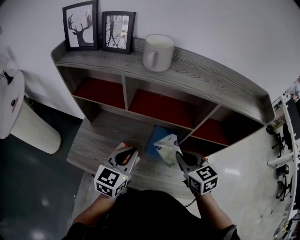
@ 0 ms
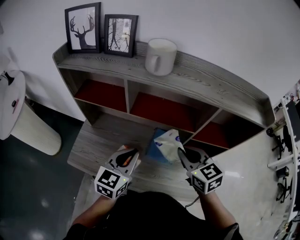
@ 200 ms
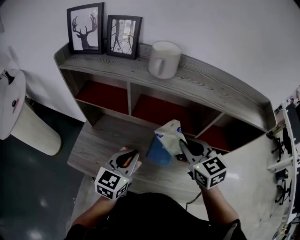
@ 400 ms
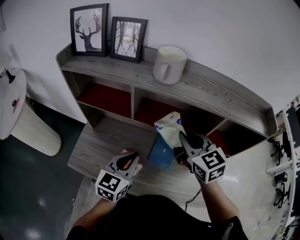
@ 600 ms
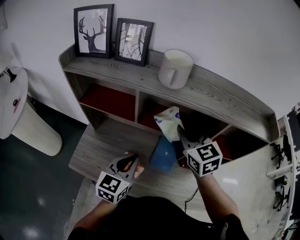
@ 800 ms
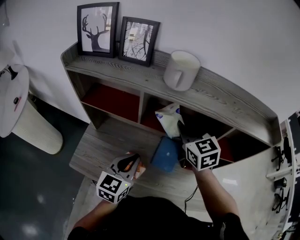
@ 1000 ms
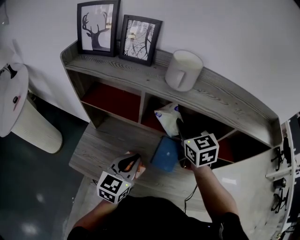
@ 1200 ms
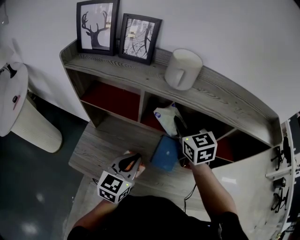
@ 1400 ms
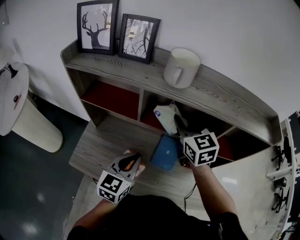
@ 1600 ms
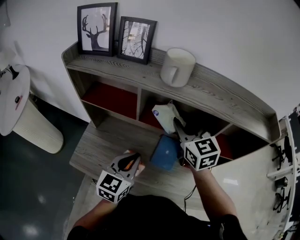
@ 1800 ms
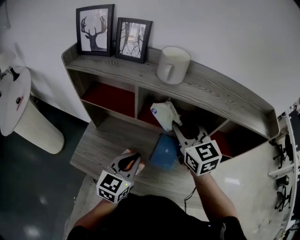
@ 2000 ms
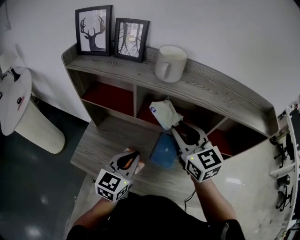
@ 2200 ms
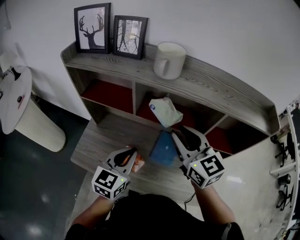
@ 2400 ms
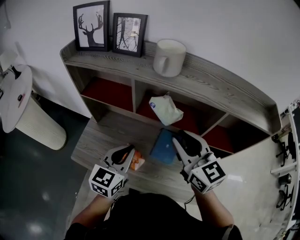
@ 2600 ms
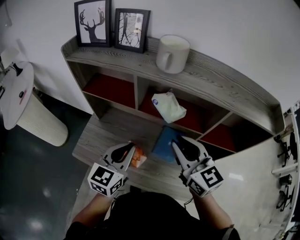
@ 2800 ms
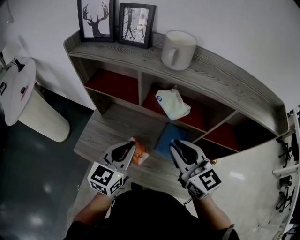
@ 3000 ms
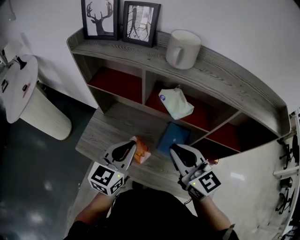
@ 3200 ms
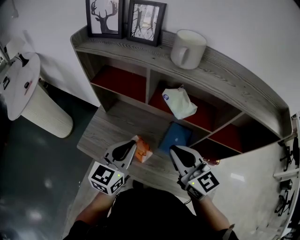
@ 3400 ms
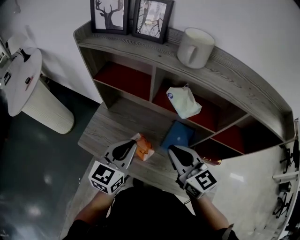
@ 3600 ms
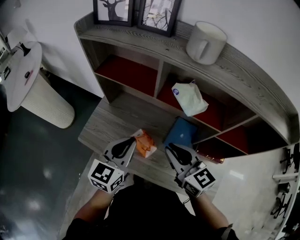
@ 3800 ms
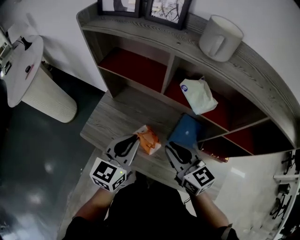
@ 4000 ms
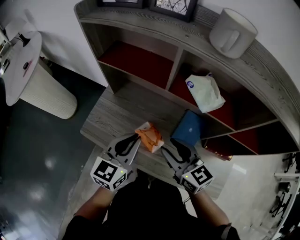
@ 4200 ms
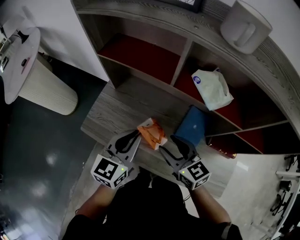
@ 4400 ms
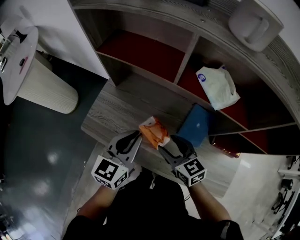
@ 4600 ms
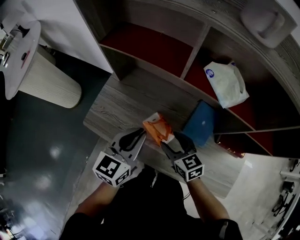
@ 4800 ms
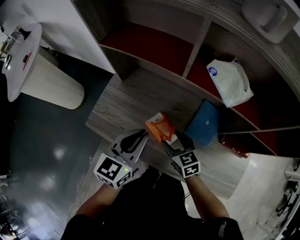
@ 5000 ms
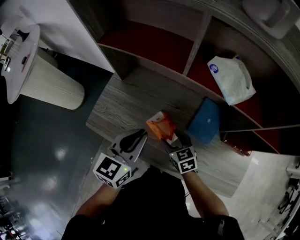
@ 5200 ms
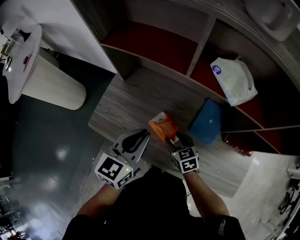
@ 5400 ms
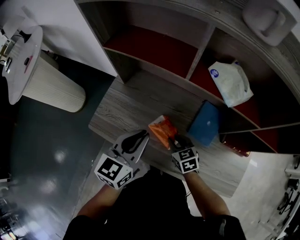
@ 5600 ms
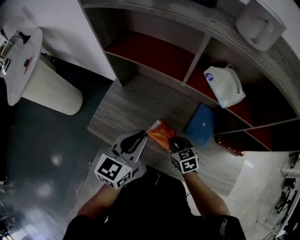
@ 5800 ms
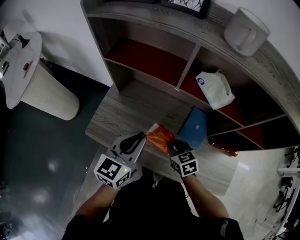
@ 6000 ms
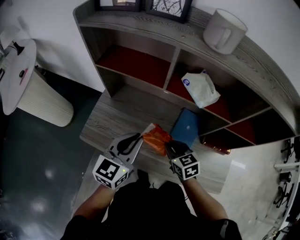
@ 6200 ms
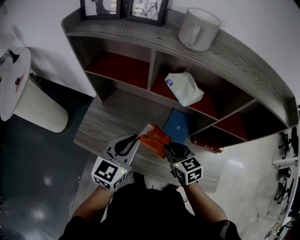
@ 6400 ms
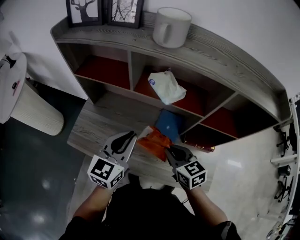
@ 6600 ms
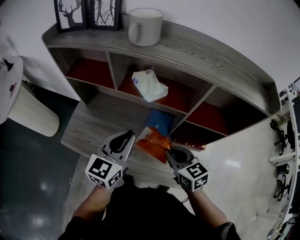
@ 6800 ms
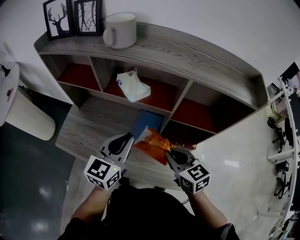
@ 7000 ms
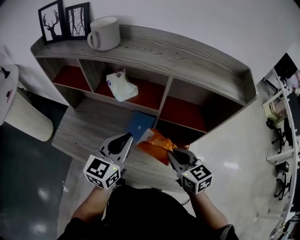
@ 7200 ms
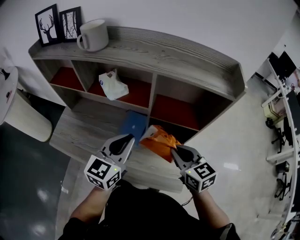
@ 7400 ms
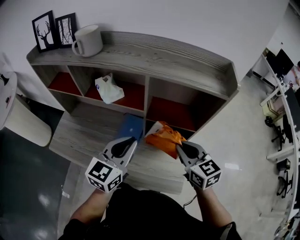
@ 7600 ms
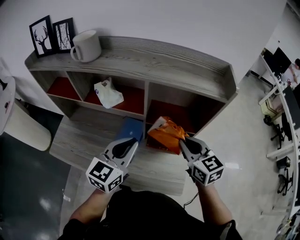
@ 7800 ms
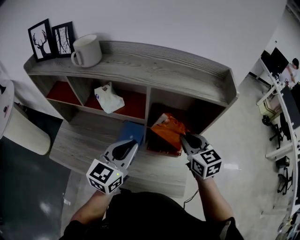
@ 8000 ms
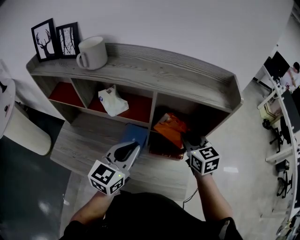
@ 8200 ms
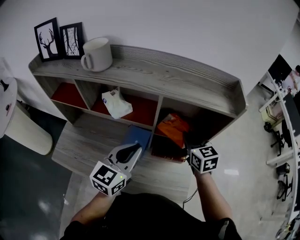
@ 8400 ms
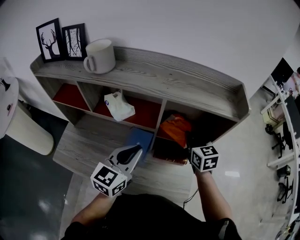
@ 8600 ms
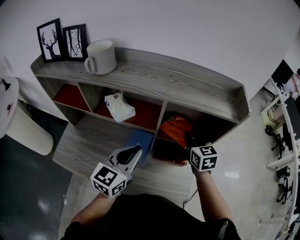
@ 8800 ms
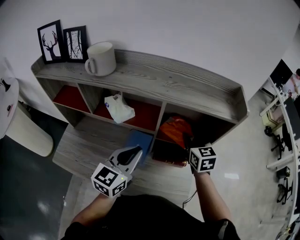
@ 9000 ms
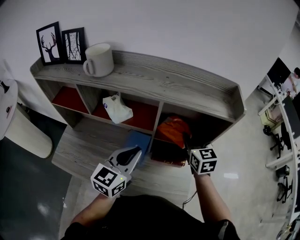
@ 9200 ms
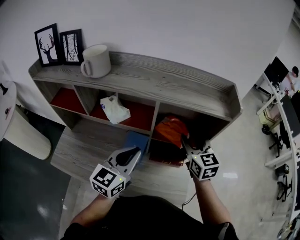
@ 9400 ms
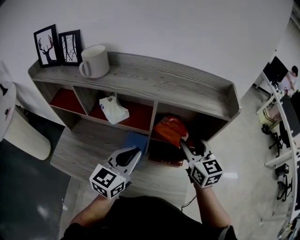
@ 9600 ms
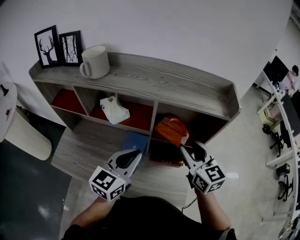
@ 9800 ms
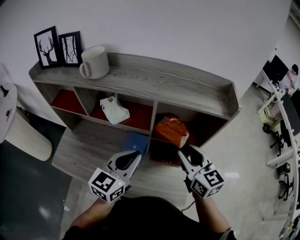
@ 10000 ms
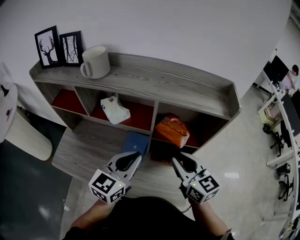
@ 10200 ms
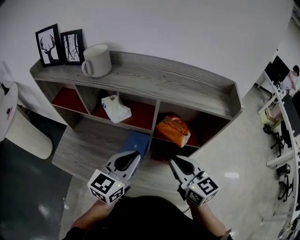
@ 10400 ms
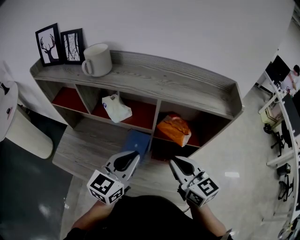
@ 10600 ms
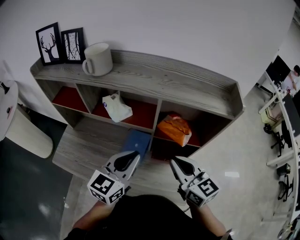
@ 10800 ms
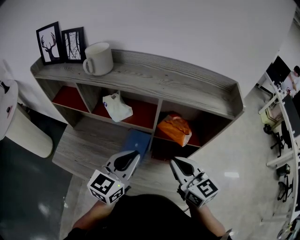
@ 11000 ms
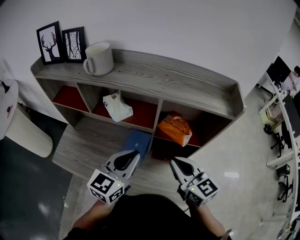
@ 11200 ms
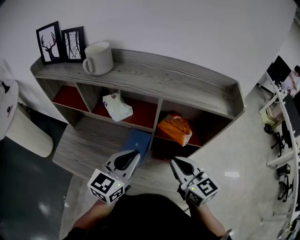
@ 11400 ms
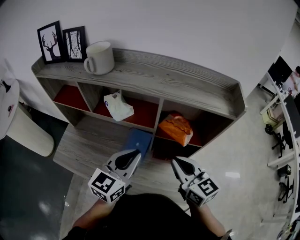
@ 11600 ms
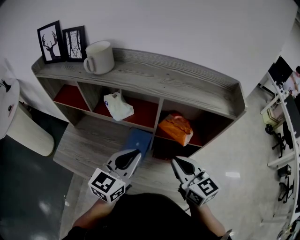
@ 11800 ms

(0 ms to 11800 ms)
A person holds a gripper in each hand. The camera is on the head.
0 ms - 1400 ms: The right gripper travels forward, upward and to the left by some 20 cm.
1400 ms - 3000 ms: The right gripper moves backward, some 15 cm, and rotates roughly 30 degrees.
3000 ms - 4400 ms: The right gripper heads downward and to the left, covering roughly 20 cm, swivels some 20 degrees, and opens. Meanwhile the left gripper shifts approximately 10 cm downward and to the left.
4400 ms - 6000 ms: The right gripper travels downward by about 10 cm, changes its angle by approximately 20 degrees, and closes its fingers.
6000 ms - 7400 ms: The right gripper shifts roughly 40 cm to the right and upward, and turns by about 20 degrees. The left gripper heads to the right, covering some 30 cm.
7400 ms - 8800 ms: The right gripper shifts some 15 cm forward, and changes its angle by about 20 degrees.
8800 ms - 10400 ms: The right gripper travels backward by some 15 cm, changes its angle by some 20 degrees, and opens and closes again.
10400 ms - 11800 ms: The two grippers keep their place.

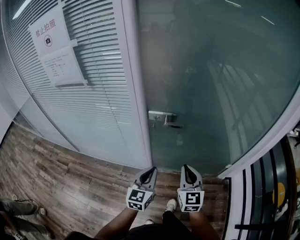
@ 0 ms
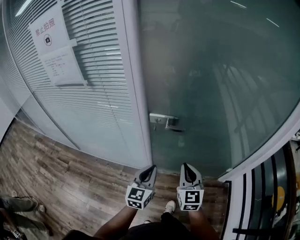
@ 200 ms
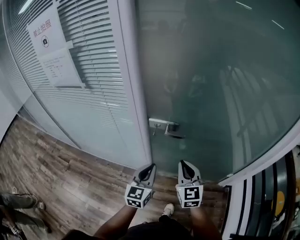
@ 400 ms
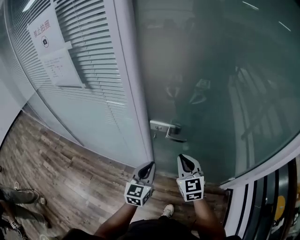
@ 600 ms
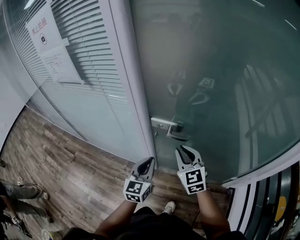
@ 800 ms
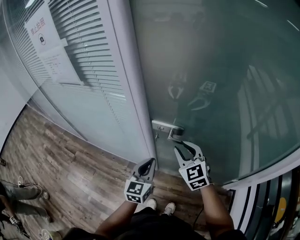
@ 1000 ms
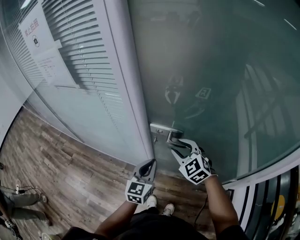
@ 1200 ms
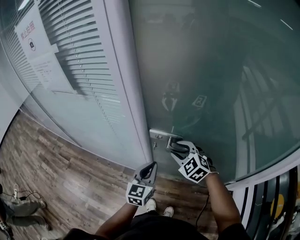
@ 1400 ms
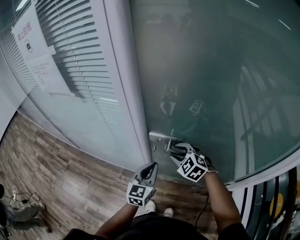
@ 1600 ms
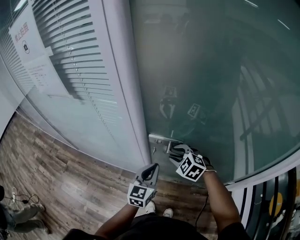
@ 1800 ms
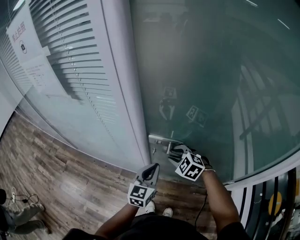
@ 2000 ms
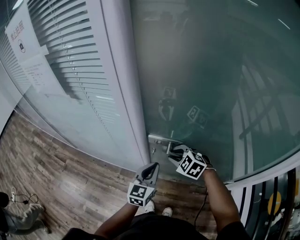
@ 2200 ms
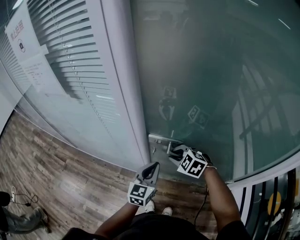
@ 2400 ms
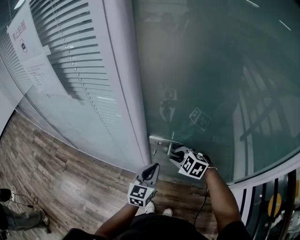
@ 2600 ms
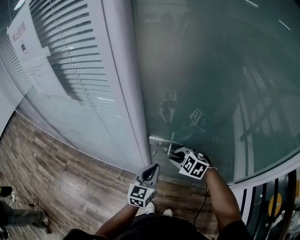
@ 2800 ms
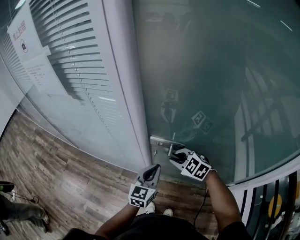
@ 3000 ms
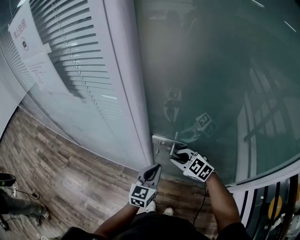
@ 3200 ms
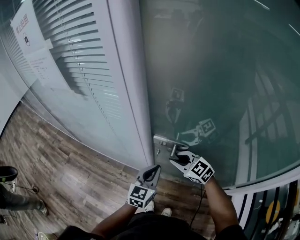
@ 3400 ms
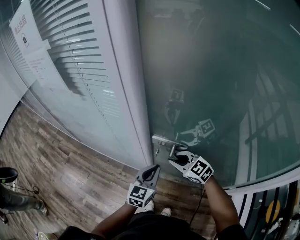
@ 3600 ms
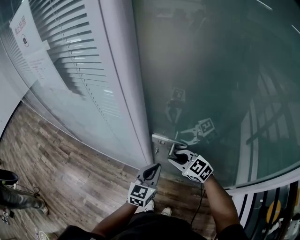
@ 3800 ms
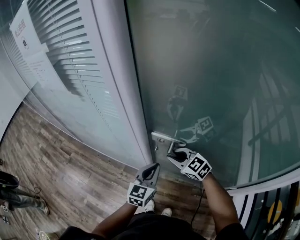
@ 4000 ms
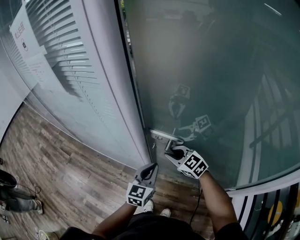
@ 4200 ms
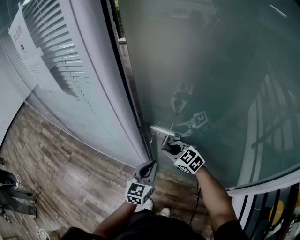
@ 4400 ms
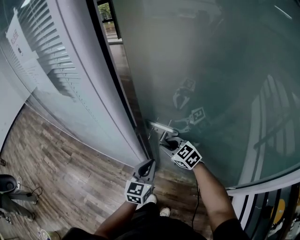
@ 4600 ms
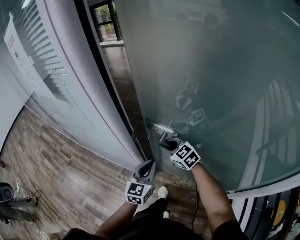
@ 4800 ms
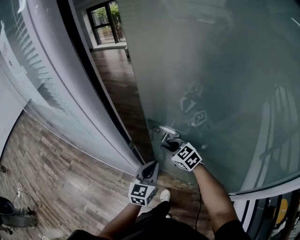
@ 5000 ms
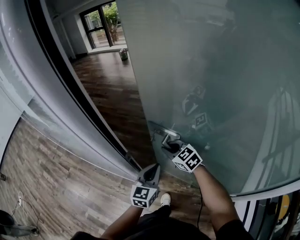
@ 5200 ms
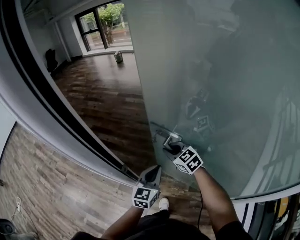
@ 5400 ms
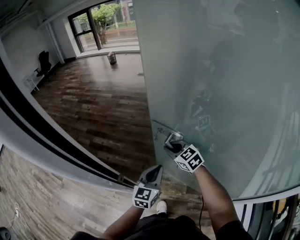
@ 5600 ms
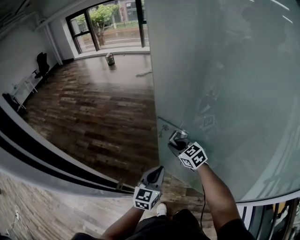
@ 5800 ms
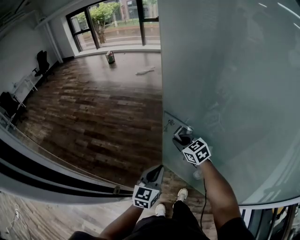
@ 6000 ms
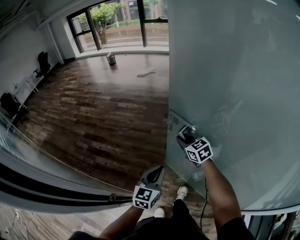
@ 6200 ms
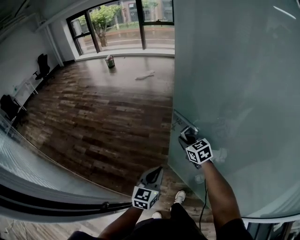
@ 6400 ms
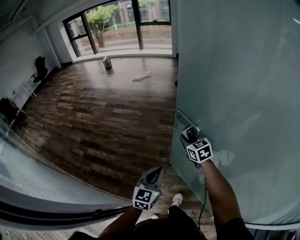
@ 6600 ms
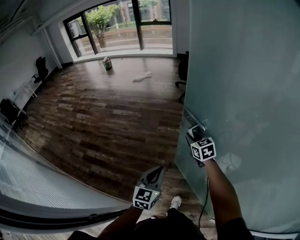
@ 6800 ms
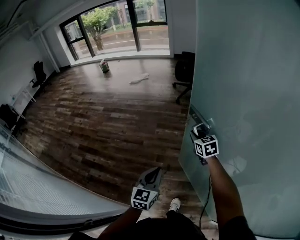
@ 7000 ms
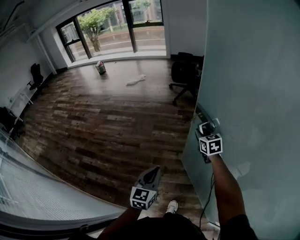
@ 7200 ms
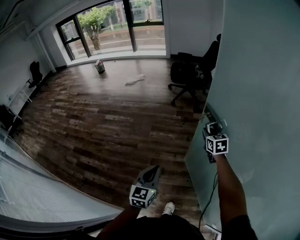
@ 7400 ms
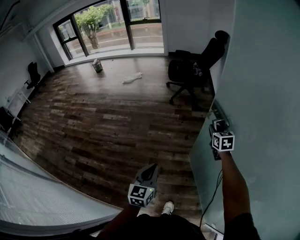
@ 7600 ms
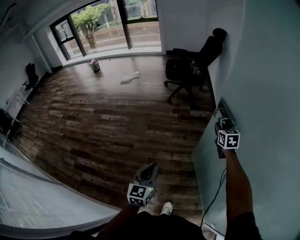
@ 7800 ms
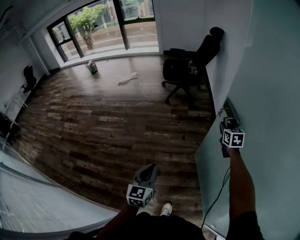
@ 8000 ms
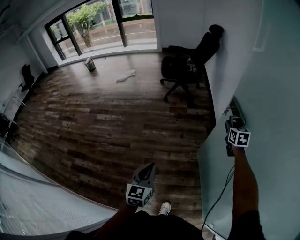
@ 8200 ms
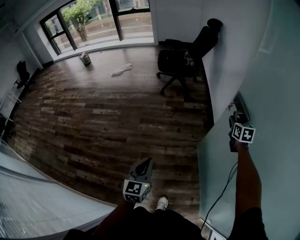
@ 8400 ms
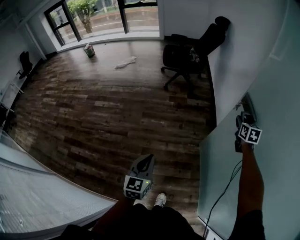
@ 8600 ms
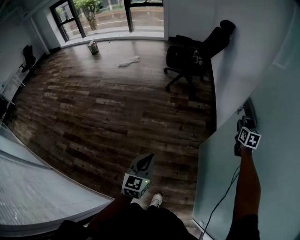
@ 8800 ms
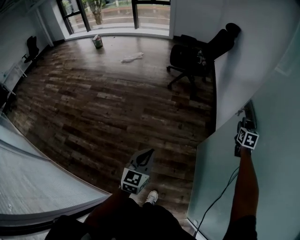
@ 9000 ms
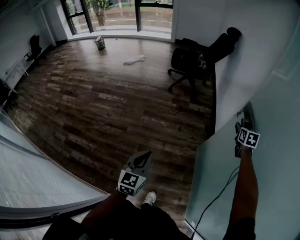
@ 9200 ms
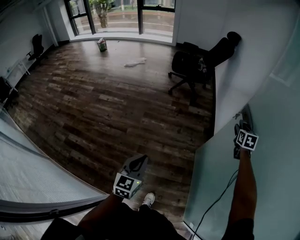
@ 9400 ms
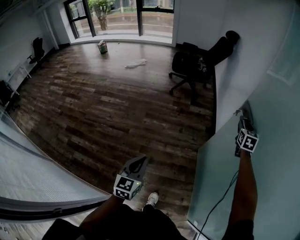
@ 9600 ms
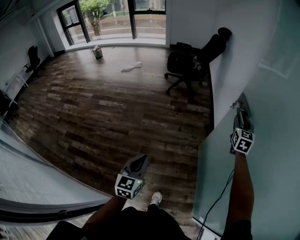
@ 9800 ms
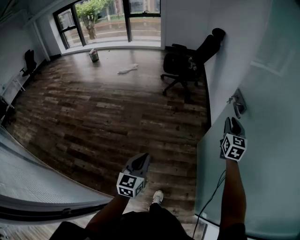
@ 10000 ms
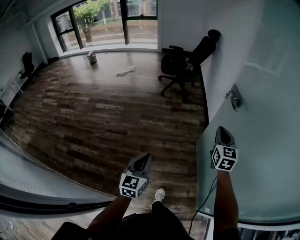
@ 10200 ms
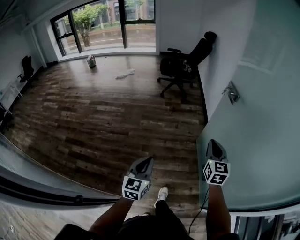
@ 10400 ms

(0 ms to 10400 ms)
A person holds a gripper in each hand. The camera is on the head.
0 ms - 1400 ms: The two grippers go some 20 cm forward. The right gripper rotates some 50 degrees, and opens its fingers.
1400 ms - 3000 ms: The right gripper shifts by approximately 5 cm, and closes its fingers.
3000 ms - 4400 ms: The right gripper ends up roughly 5 cm from where it was.
4400 ms - 6000 ms: Both grippers travel together forward and to the right, approximately 30 cm. The right gripper swivels approximately 20 degrees.
6000 ms - 7400 ms: The right gripper is displaced to the right and forward by some 50 cm, and turns by roughly 30 degrees; the left gripper is displaced forward and to the right by roughly 35 cm.
7400 ms - 9000 ms: The right gripper shifts some 30 cm to the right and forward, and changes its angle by roughly 20 degrees. The left gripper is displaced forward by approximately 10 cm.
9000 ms - 10400 ms: The left gripper is displaced backward by roughly 30 cm. The right gripper goes about 50 cm backward, turns by about 20 degrees, and opens and closes again.

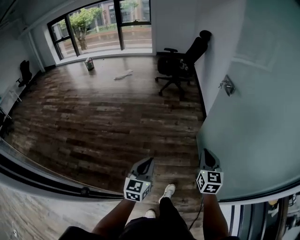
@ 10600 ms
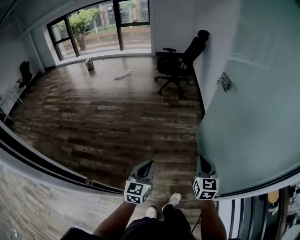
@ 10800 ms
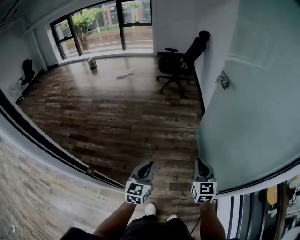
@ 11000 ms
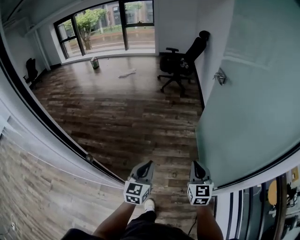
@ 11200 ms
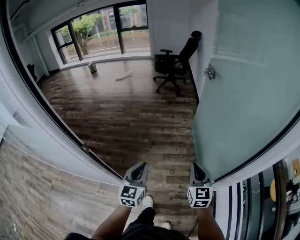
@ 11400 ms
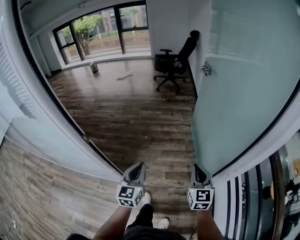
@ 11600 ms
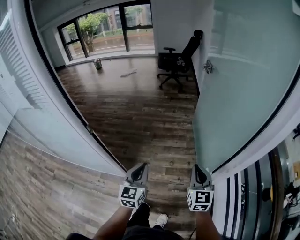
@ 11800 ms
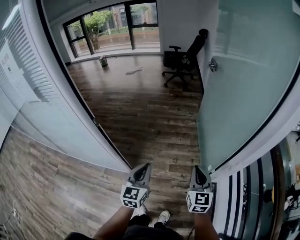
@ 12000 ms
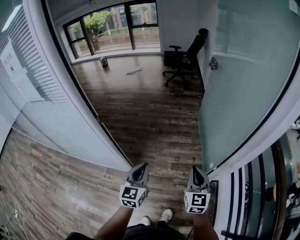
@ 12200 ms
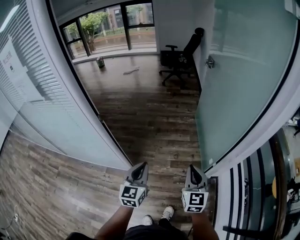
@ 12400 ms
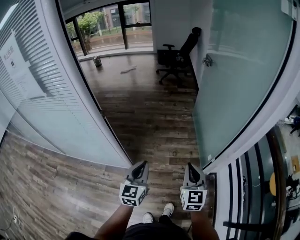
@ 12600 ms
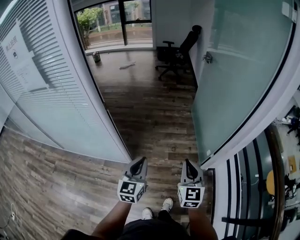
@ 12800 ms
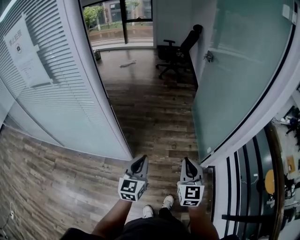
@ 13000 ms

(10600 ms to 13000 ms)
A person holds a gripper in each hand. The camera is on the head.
10600 ms - 11800 ms: The pair of grippers is taken backward, roughly 40 cm.
11800 ms - 13000 ms: The grippers both shift backward and to the left by some 20 cm.
